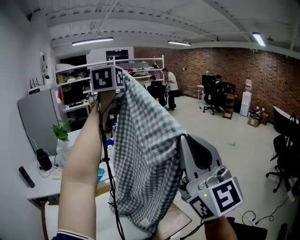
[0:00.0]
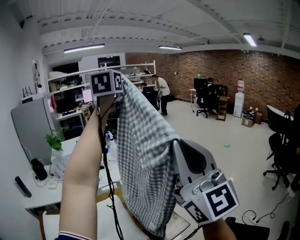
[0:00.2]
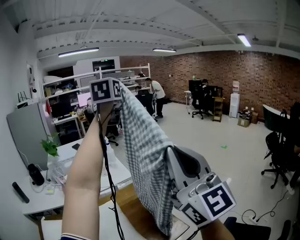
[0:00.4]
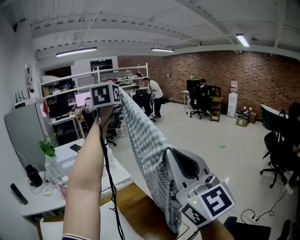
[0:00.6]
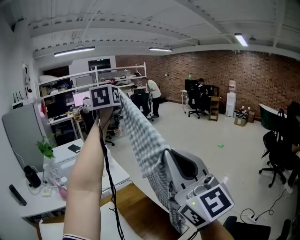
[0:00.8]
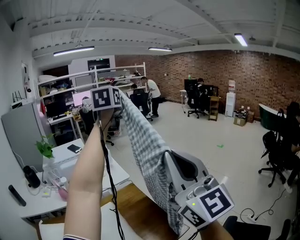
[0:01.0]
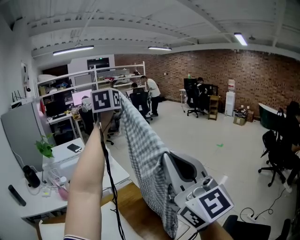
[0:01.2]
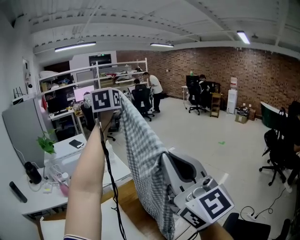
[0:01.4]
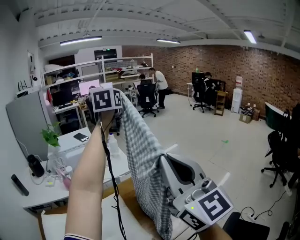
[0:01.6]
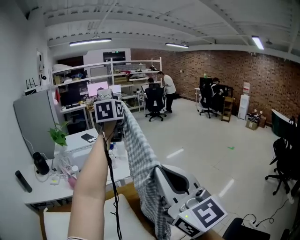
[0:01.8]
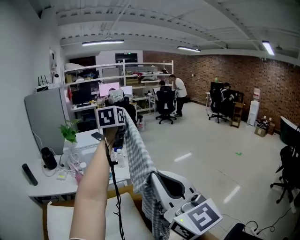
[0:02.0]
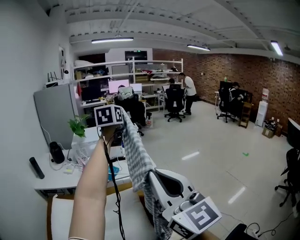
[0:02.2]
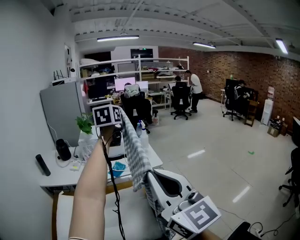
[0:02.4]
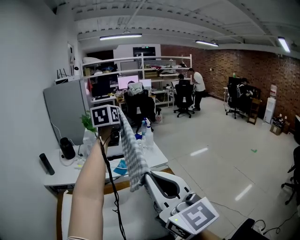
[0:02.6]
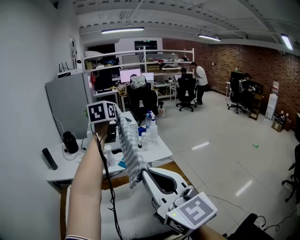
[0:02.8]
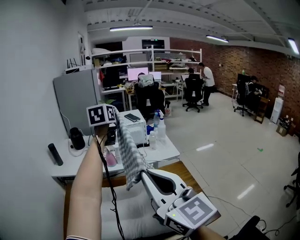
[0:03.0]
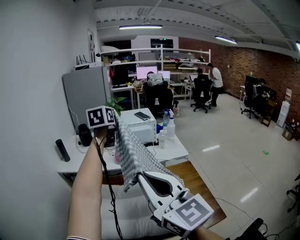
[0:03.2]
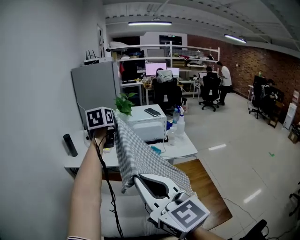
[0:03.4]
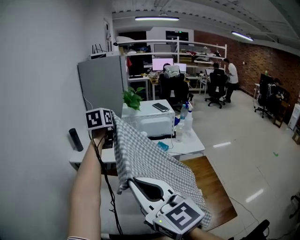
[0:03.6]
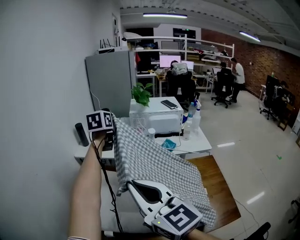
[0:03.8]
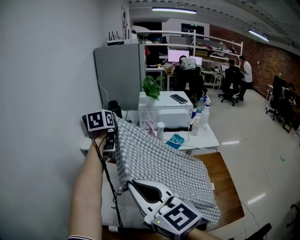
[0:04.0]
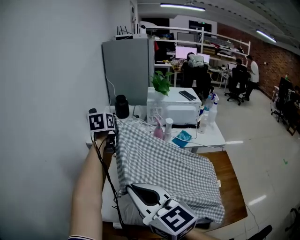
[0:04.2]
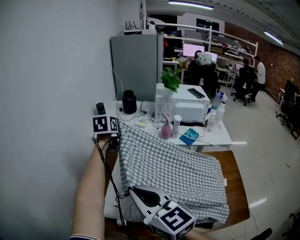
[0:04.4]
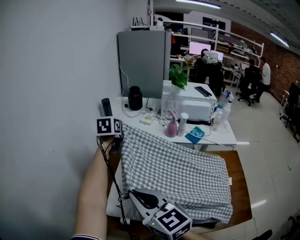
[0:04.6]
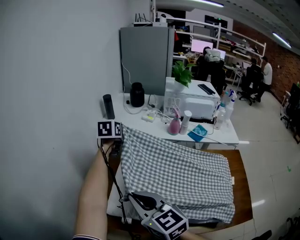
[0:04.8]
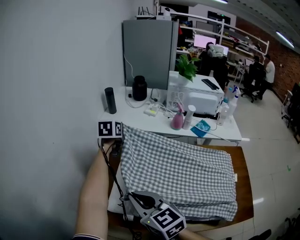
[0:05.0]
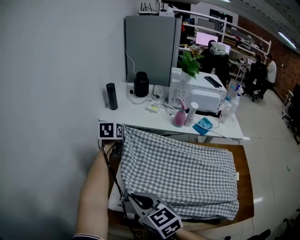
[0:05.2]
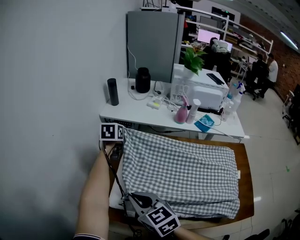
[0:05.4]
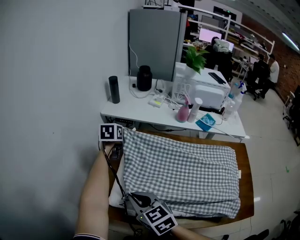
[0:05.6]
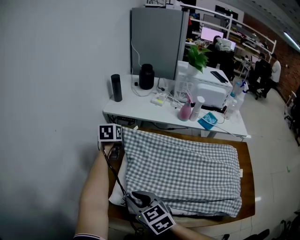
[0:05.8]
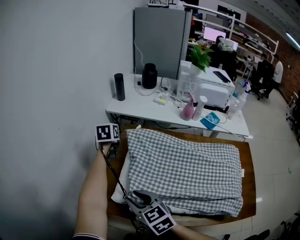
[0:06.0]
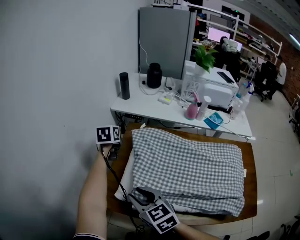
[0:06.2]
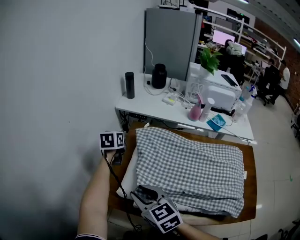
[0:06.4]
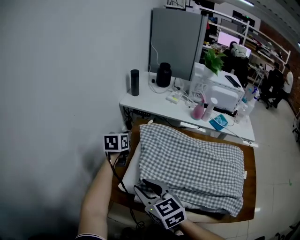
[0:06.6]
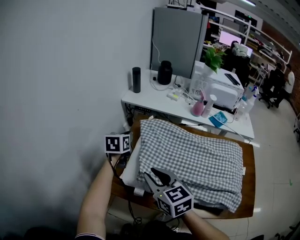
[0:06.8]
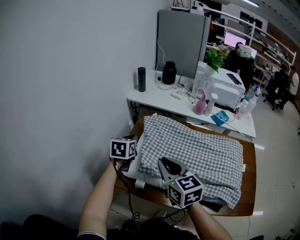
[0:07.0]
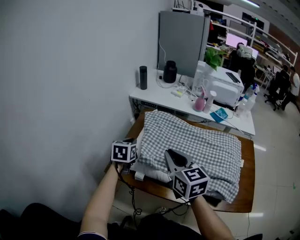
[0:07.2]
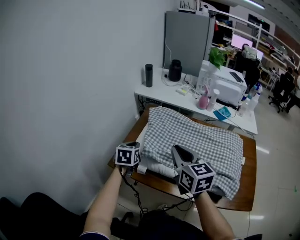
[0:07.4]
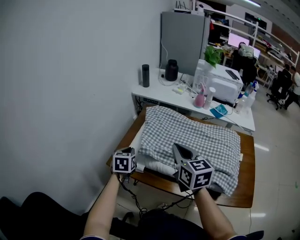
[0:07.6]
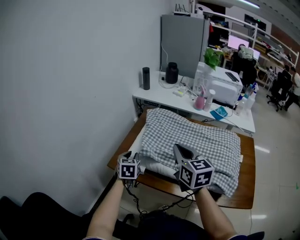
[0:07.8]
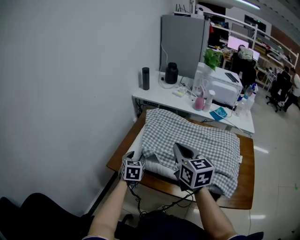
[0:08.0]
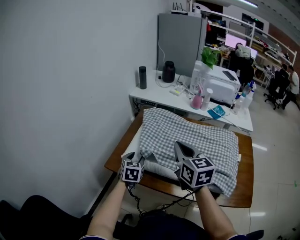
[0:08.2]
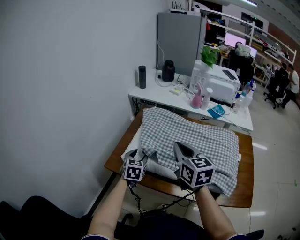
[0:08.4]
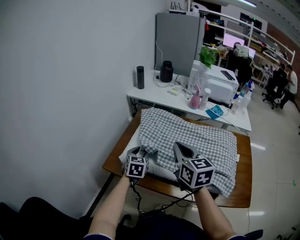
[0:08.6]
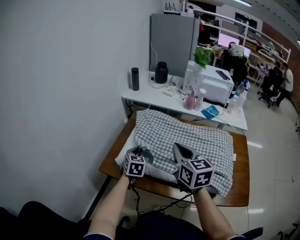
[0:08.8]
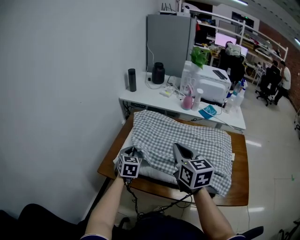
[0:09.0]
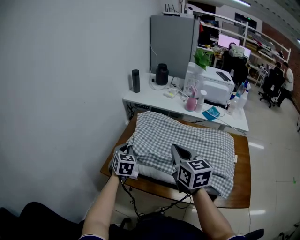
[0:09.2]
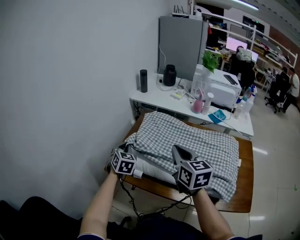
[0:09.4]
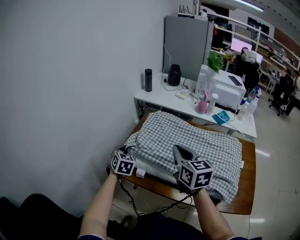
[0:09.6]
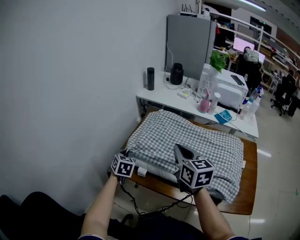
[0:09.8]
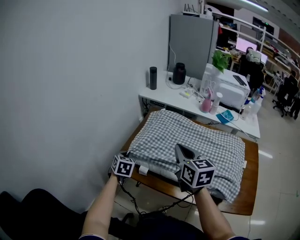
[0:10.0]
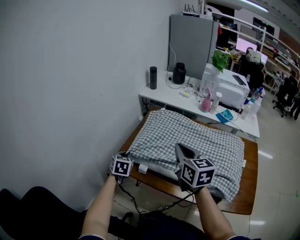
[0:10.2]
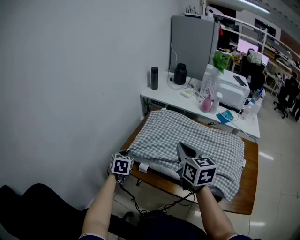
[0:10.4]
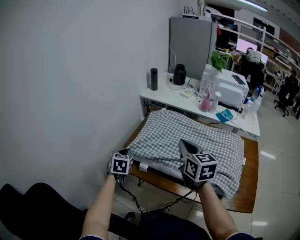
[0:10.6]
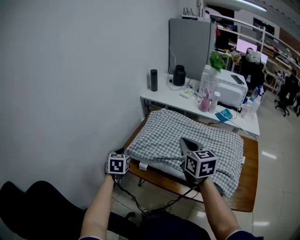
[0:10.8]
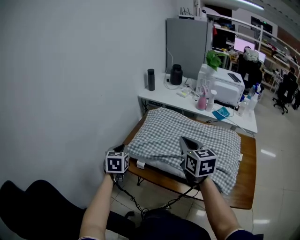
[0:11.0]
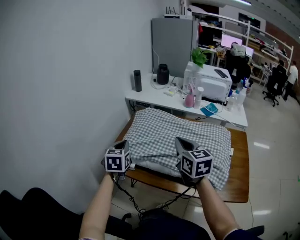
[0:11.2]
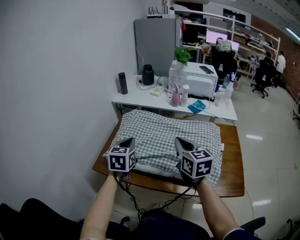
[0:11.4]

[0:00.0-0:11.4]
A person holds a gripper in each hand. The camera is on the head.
0:00.0 to 0:01.4: The left gripper goes roughly 10 cm downward and forward. The right gripper changes place by approximately 5 cm.
0:01.4 to 0:02.8: Both grippers travel together to the left, roughly 25 cm. The right gripper swivels some 30 degrees. The left gripper turns by some 20 degrees.
0:02.8 to 0:04.2: Both grippers travel together to the left and downward, roughly 40 cm. The right gripper swivels roughly 30 degrees. Meanwhile the left gripper turns by some 30 degrees.
0:04.2 to 0:05.6: The two grippers go roughly 25 cm downward and to the left. The right gripper turns by about 30 degrees.
0:05.6 to 0:07.2: The right gripper travels upward and to the right by roughly 15 cm, and opens, then closes once more; the left gripper shifts roughly 25 cm backward.
0:07.2 to 0:08.6: The left gripper is displaced to the right and backward by some 10 cm, and opens up. Meanwhile the right gripper heads to the right, covering some 5 cm.
0:08.6 to 0:10.0: The left gripper shifts some 15 cm to the left, and closes.
0:10.0 to 0:11.4: The left gripper heads to the right and upward, covering about 20 cm, and changes its angle by about 20 degrees. The right gripper moves to the right and backward, roughly 15 cm.

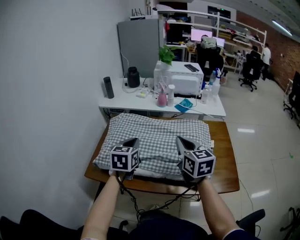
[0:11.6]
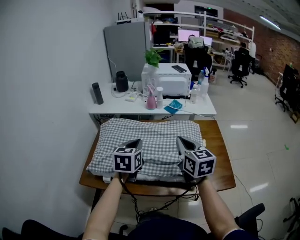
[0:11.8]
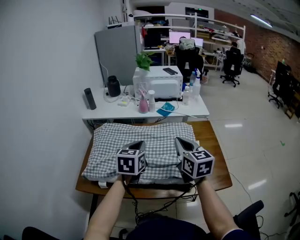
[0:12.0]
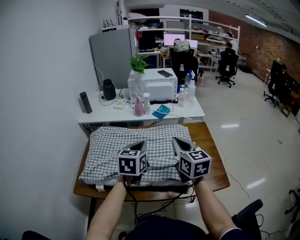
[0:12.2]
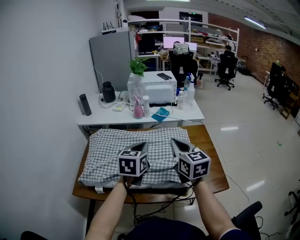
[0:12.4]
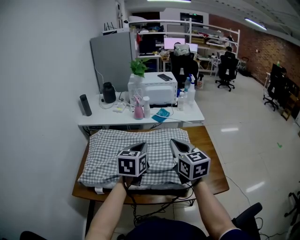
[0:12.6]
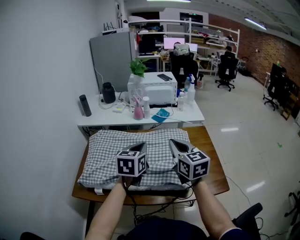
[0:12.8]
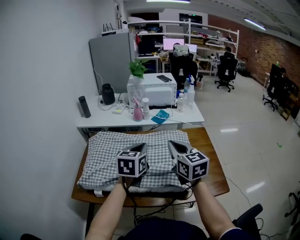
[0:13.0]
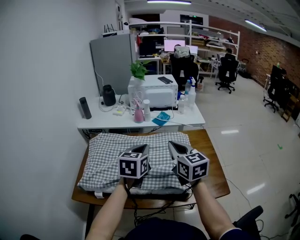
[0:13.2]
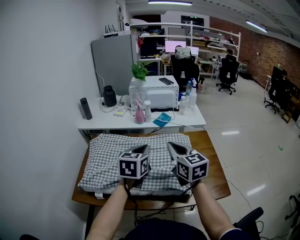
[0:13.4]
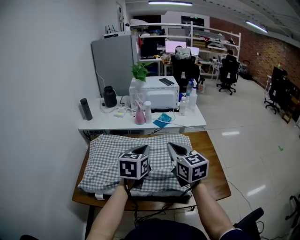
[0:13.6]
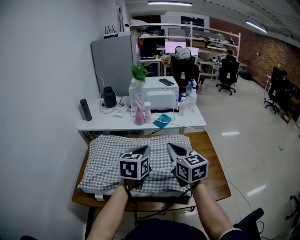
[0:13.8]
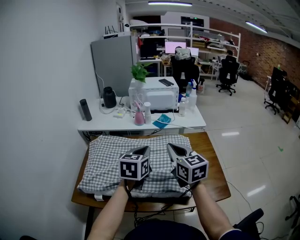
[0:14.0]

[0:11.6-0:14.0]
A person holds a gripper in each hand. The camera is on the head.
0:11.6 to 0:12.8: The right gripper heads to the right, covering roughly 5 cm, while the left gripper shifts some 15 cm to the right.
0:12.8 to 0:14.0: There are only small adjustments of the grippers.

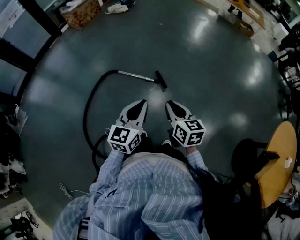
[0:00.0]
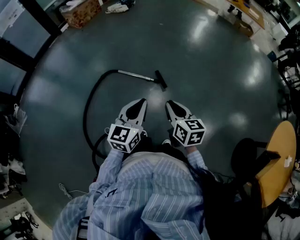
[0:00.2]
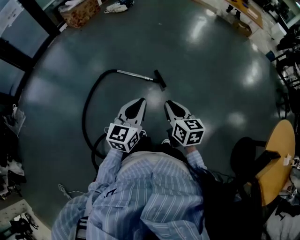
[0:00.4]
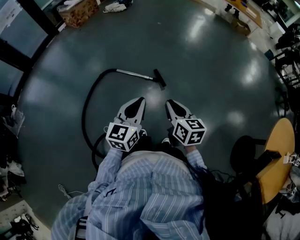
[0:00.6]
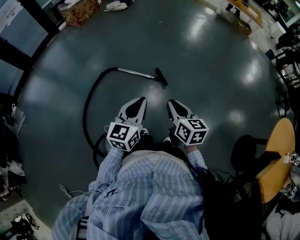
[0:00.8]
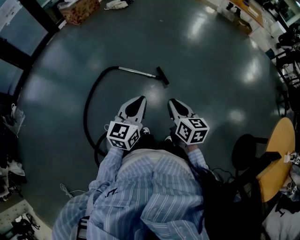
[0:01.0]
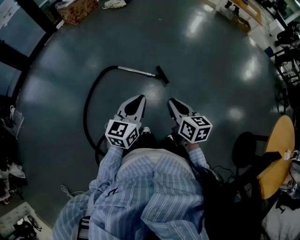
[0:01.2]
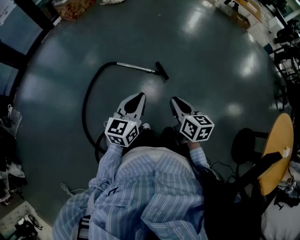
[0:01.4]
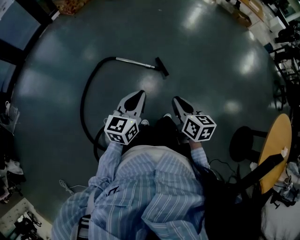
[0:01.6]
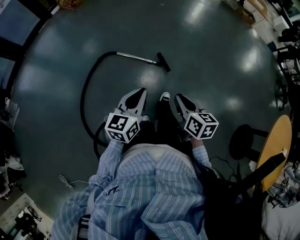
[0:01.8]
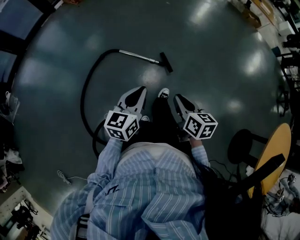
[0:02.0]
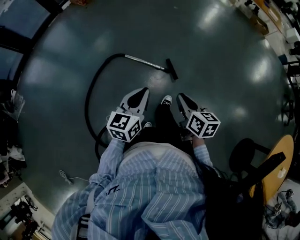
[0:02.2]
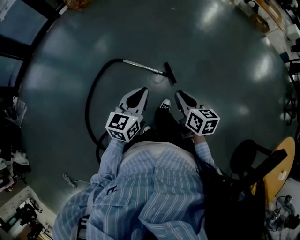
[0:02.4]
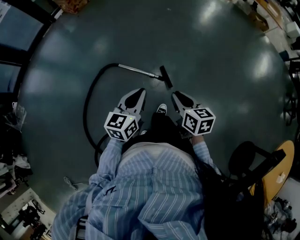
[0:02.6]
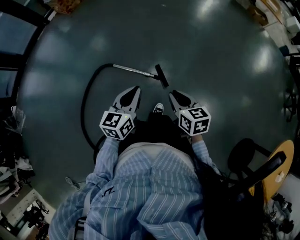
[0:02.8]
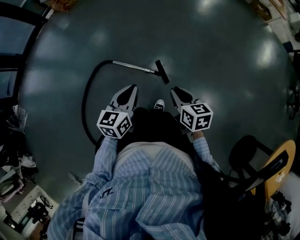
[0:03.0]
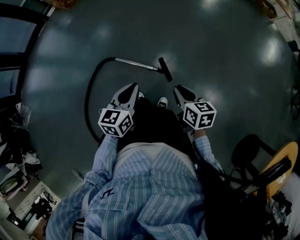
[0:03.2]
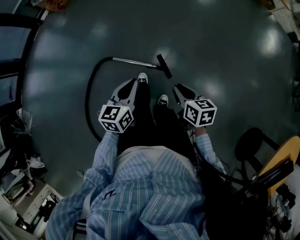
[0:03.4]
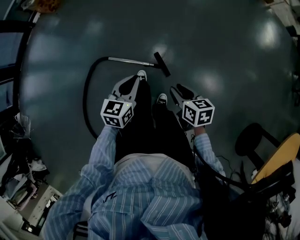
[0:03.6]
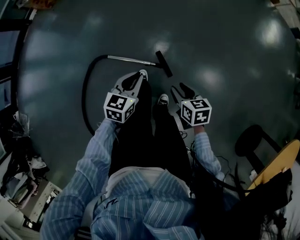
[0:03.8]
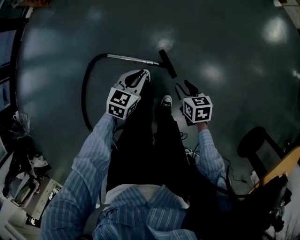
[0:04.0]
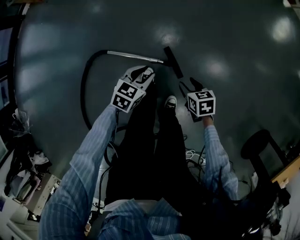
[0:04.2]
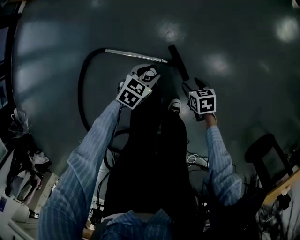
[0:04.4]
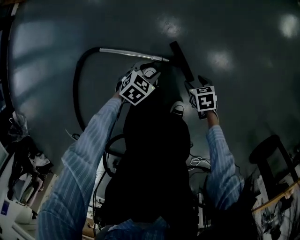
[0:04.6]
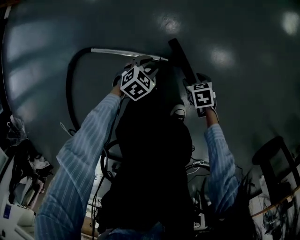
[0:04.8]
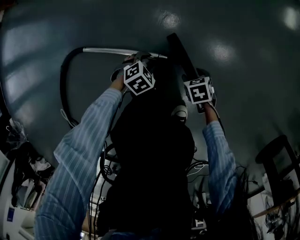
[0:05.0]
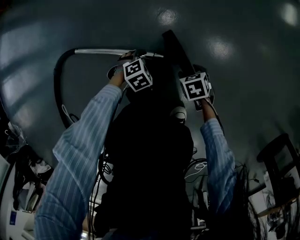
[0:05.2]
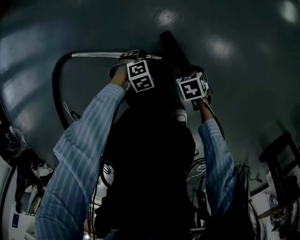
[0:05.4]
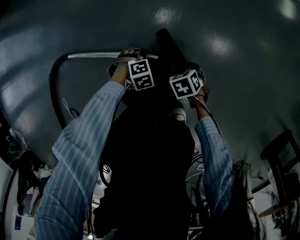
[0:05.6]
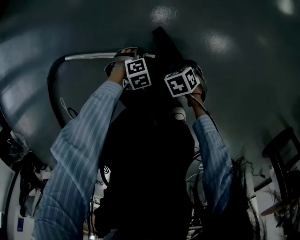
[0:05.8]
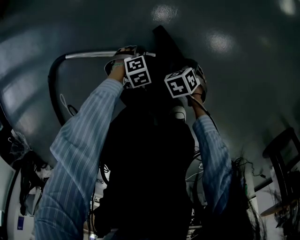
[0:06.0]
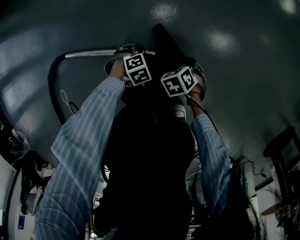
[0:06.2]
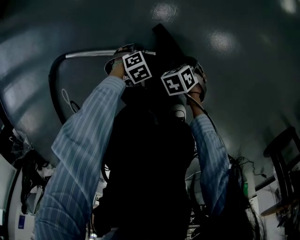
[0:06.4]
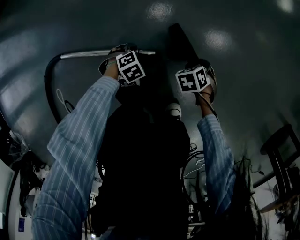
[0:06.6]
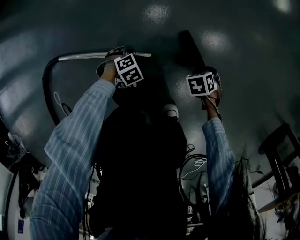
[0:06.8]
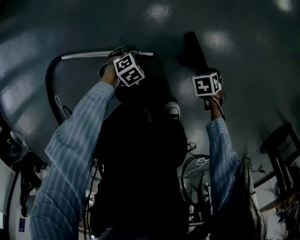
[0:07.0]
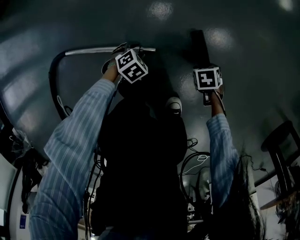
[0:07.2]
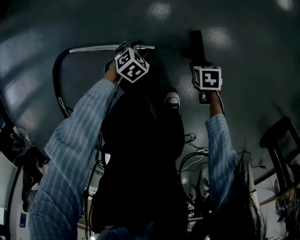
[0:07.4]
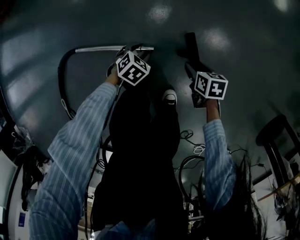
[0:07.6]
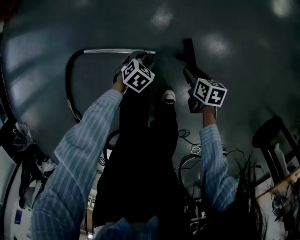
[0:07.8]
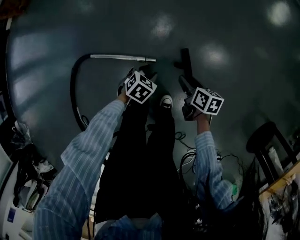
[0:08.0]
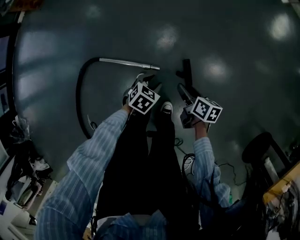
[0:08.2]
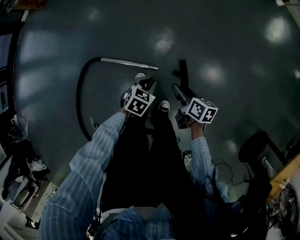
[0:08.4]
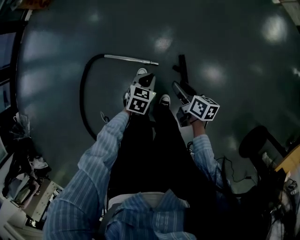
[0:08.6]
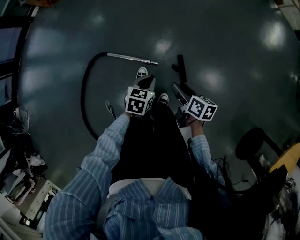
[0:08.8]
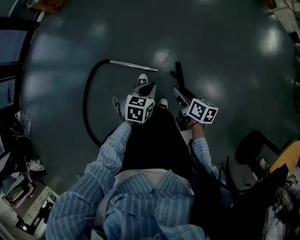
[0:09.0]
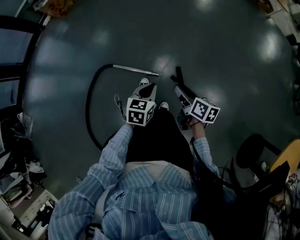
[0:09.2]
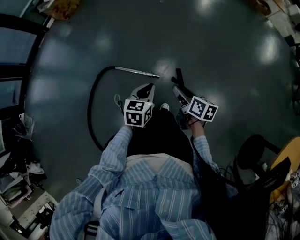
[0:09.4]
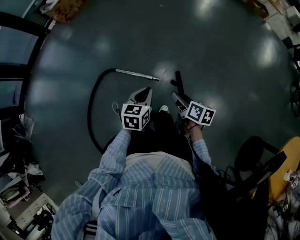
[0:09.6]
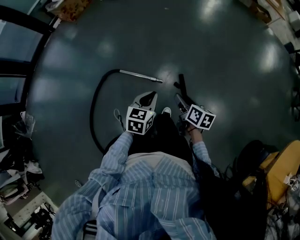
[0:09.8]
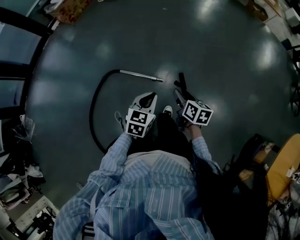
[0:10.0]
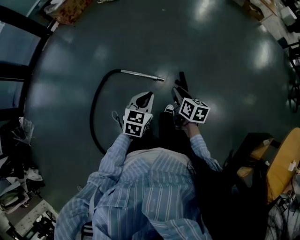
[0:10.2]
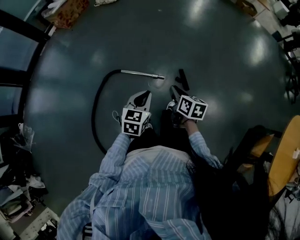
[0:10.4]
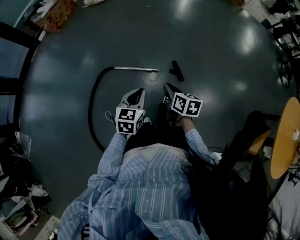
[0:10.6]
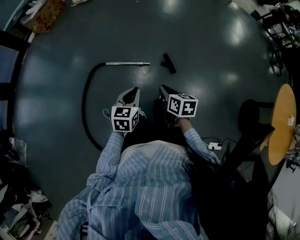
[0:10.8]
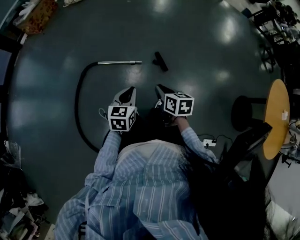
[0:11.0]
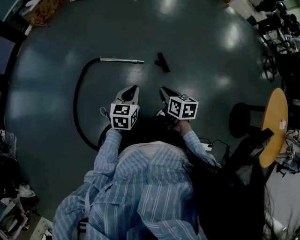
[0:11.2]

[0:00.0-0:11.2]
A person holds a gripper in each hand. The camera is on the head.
0:00.0 to 0:01.6: The left gripper travels to the left by about 10 cm; the right gripper is displaced to the left by some 5 cm.
0:01.6 to 0:03.2: The right gripper travels forward and to the right by some 35 cm. The left gripper goes some 30 cm forward.
0:03.2 to 0:04.8: The two grippers go some 60 cm downward. The left gripper tilts its fingers about 30 degrees downward, and opens, while the right gripper points its fingers some 40 degrees further downward, and opens up.
0:04.8 to 0:06.4: The right gripper shifts some 10 cm downward, and changes its angle by approximately 20 degrees, while the left gripper heads downward, covering about 20 cm, and turns by approximately 30 degrees.
0:06.4 to 0:08.0: The two grippers go roughly 35 cm upward. The left gripper changes its angle by approximately 30 degrees, while the right gripper points its fingers approximately 30 degrees further upward.
0:08.0 to 0:09.6: The two grippers go roughly 50 cm upward. The left gripper rotates approximately 50 degrees, and closes its fingers.
0:09.6 to 0:11.2: Both grippers move backward, some 25 cm. The right gripper rotates approximately 20 degrees, and closes.
